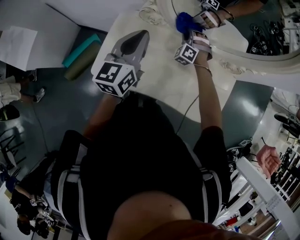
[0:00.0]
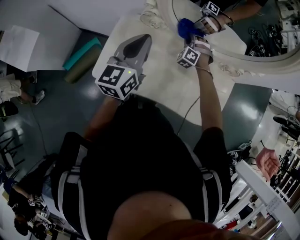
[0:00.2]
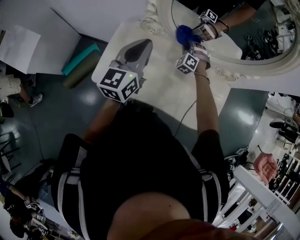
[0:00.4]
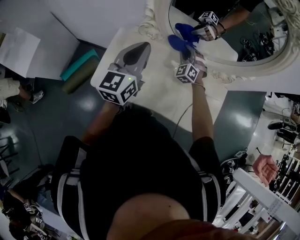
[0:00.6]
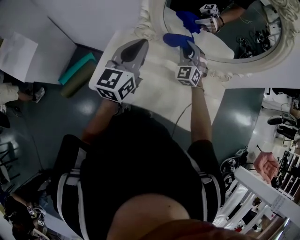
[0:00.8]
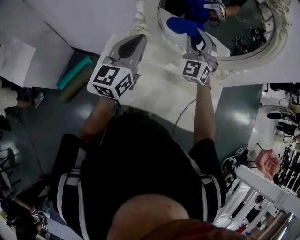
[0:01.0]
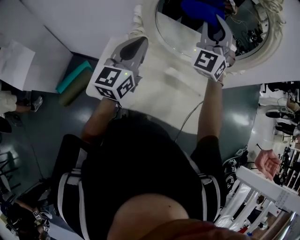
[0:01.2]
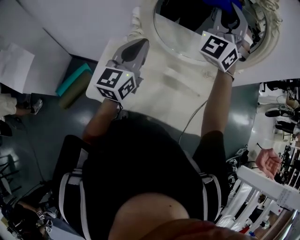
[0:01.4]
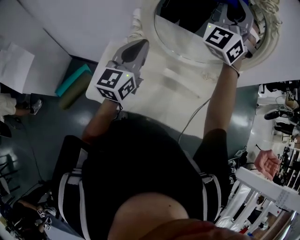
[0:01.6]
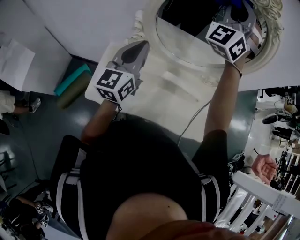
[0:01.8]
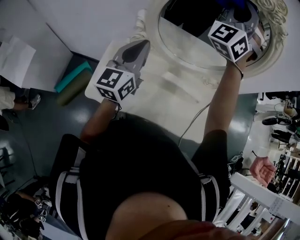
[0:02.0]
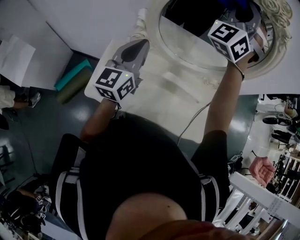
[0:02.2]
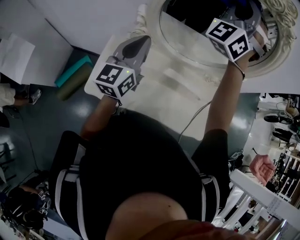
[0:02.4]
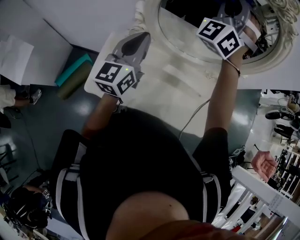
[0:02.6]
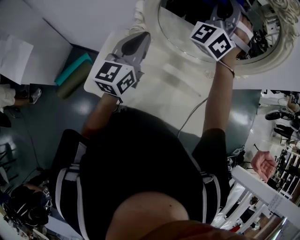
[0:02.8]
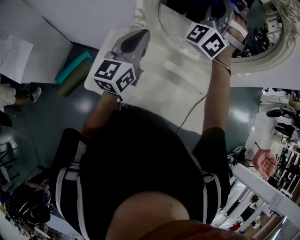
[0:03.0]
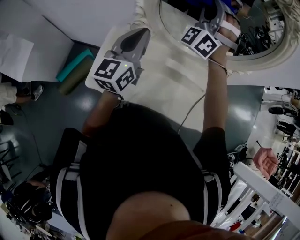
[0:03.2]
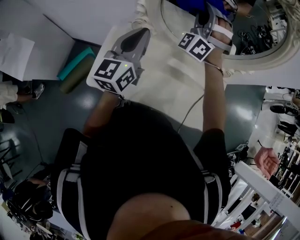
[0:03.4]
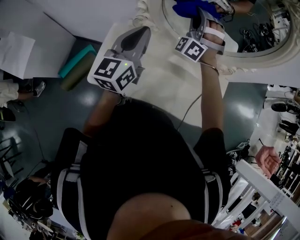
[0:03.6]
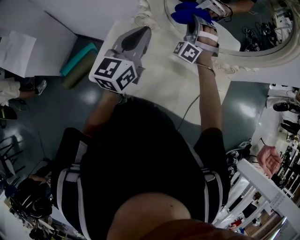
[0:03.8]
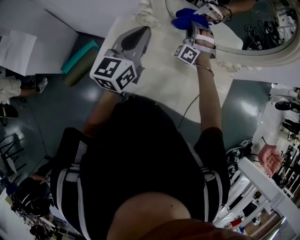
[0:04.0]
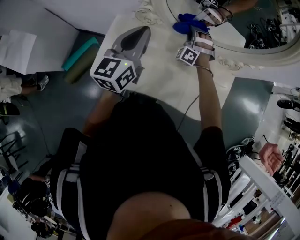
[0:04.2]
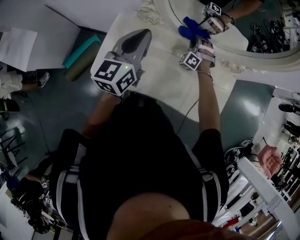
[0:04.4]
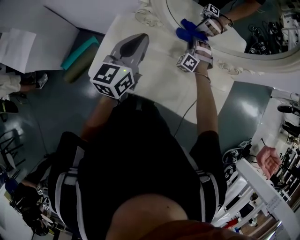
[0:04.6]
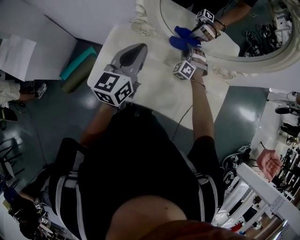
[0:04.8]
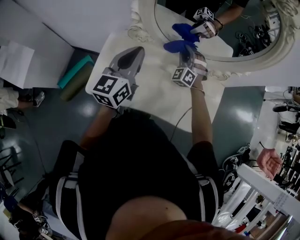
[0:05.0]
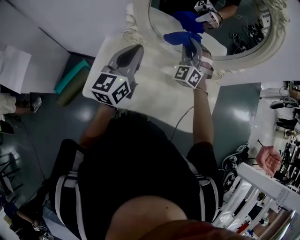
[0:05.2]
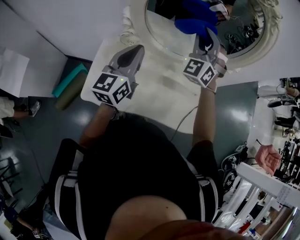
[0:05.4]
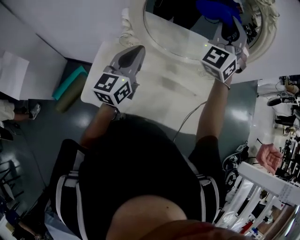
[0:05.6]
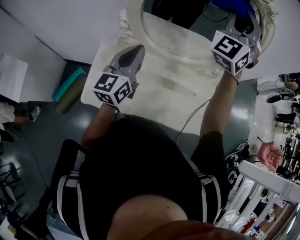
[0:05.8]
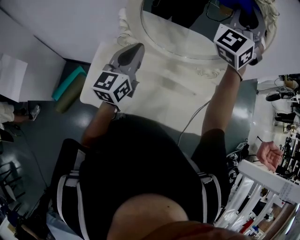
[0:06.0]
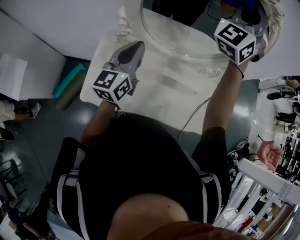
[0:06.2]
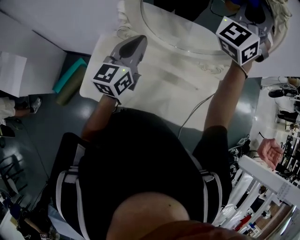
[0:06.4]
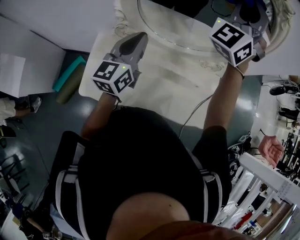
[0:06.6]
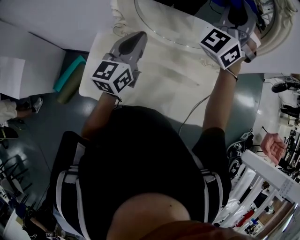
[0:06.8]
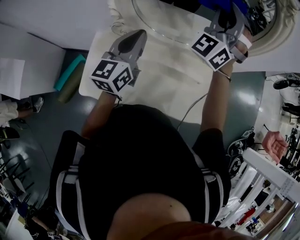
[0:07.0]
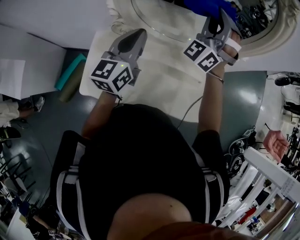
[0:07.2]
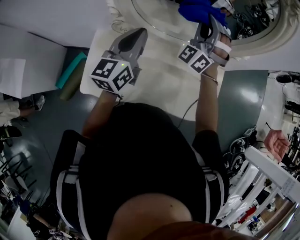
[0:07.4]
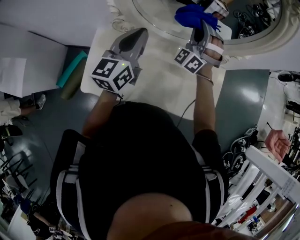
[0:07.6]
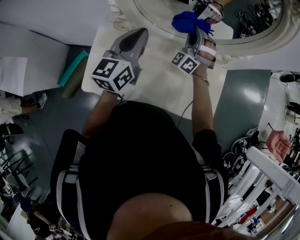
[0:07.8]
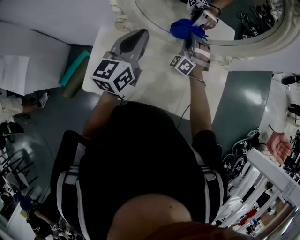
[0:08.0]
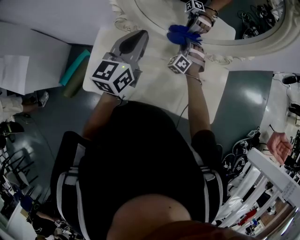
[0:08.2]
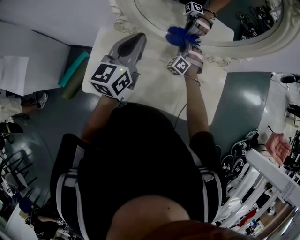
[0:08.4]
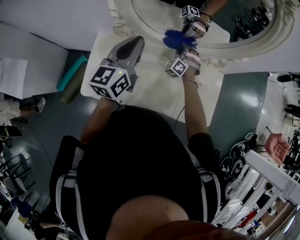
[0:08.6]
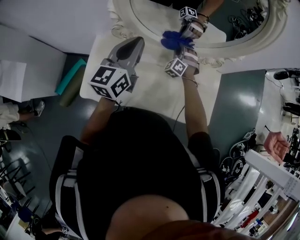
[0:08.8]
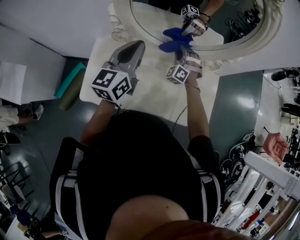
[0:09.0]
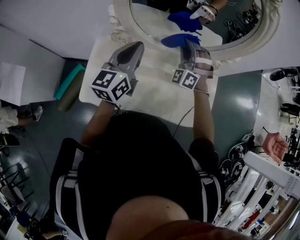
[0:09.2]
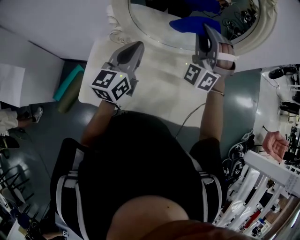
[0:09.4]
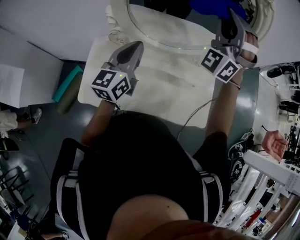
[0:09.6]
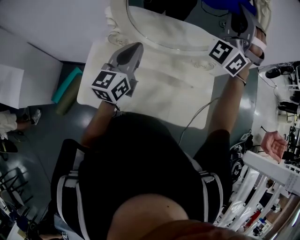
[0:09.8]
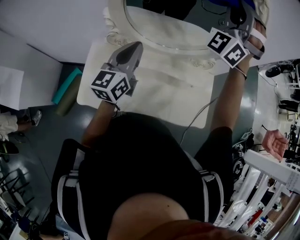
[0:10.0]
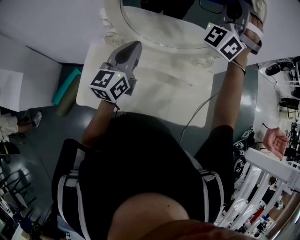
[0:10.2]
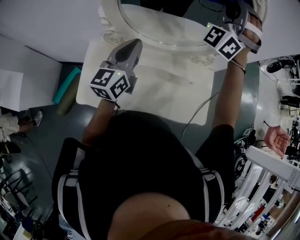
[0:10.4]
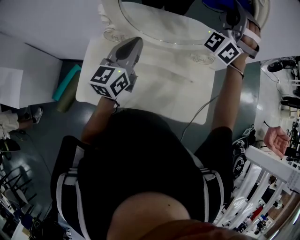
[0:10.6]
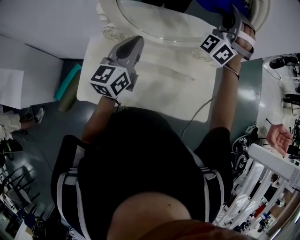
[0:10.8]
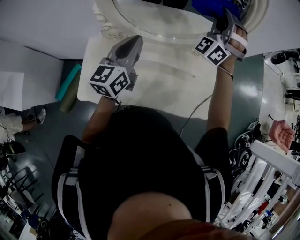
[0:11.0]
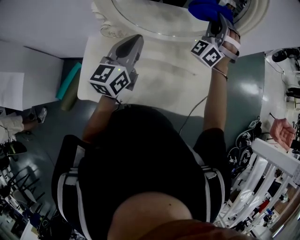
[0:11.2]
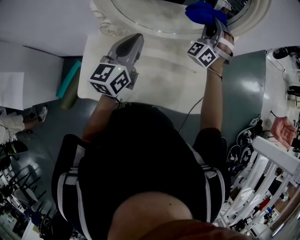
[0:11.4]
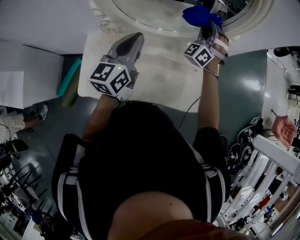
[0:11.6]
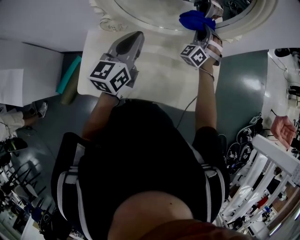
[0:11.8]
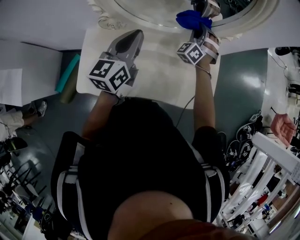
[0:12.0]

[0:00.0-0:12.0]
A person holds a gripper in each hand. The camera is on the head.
0:00.0 to 0:01.6: The right gripper shifts approximately 50 cm upward, and angles its fingers upward, by about 50 degrees. The left gripper goes about 5 cm upward.
0:01.6 to 0:03.0: The right gripper heads downward, covering approximately 10 cm.
0:03.0 to 0:04.4: The right gripper goes about 40 cm downward, and points its fingers roughly 40 degrees further downward. Meanwhile the left gripper travels downward by roughly 5 cm.
0:04.4 to 0:06.0: The left gripper goes about 5 cm upward. Meanwhile the right gripper heads upward, covering roughly 50 cm, and tips its fingers upward by about 40 degrees.
0:06.0 to 0:07.6: The left gripper is displaced downward by some 5 cm; the right gripper travels downward by about 35 cm, and changes its angle by about 20 degrees.
0:07.6 to 0:09.0: The right gripper moves downward, some 15 cm, and swivels roughly 20 degrees.
0:09.0 to 0:10.4: The right gripper is displaced upward by some 40 cm, and tilts its fingers about 40 degrees upward.
0:10.4 to 0:12.0: The right gripper is displaced downward by some 35 cm, and tilts its fingers some 30 degrees downward.

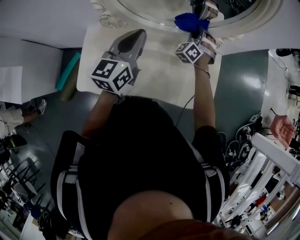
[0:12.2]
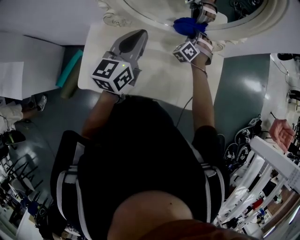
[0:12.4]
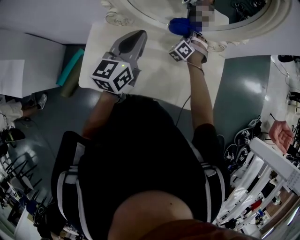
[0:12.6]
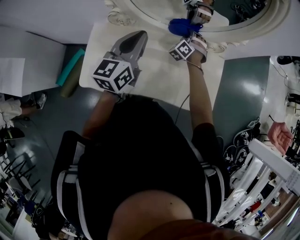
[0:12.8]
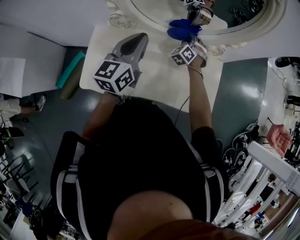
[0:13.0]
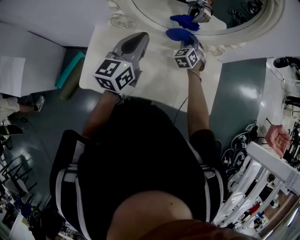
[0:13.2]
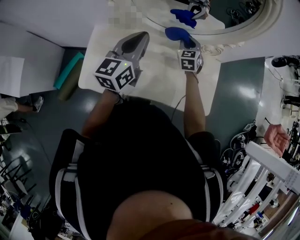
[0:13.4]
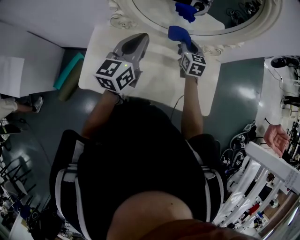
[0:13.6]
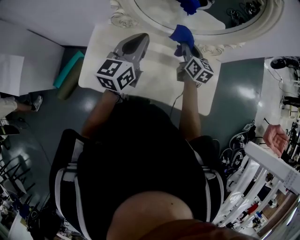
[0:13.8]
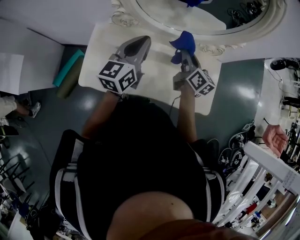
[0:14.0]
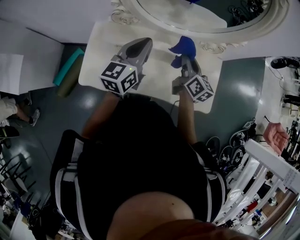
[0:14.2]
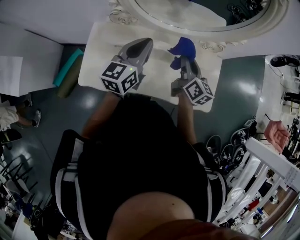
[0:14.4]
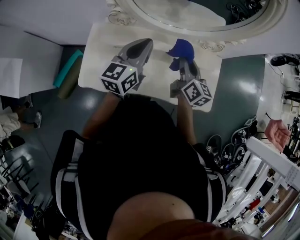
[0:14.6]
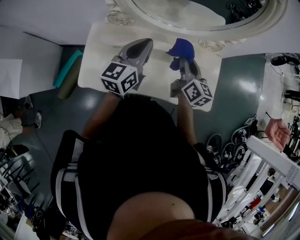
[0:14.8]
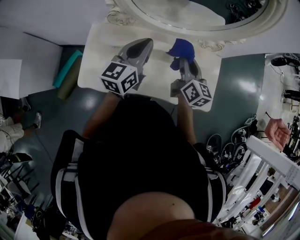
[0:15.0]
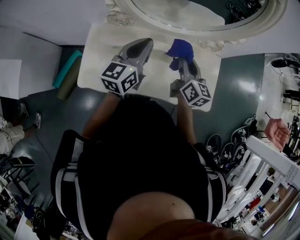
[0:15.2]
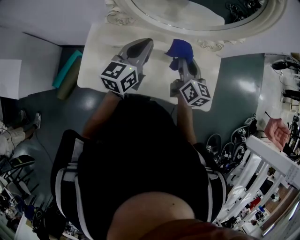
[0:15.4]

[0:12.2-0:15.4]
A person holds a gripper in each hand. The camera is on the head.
0:12.2 to 0:13.8: The right gripper heads backward, covering some 10 cm, and twists roughly 80 degrees clockwise, seen from behind.
0:13.8 to 0:15.4: The right gripper heads backward, covering roughly 10 cm.

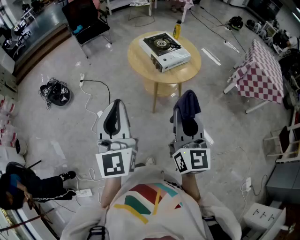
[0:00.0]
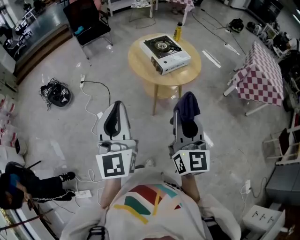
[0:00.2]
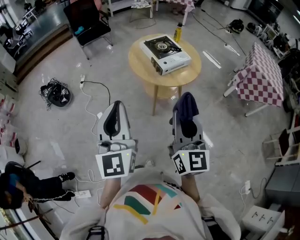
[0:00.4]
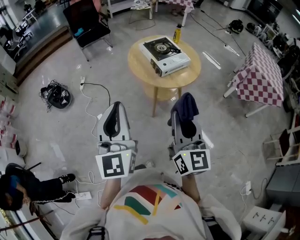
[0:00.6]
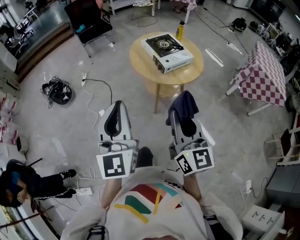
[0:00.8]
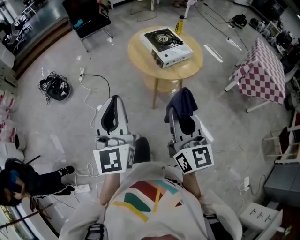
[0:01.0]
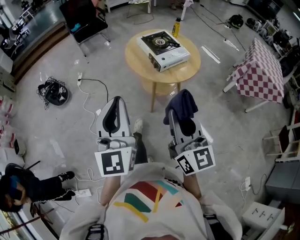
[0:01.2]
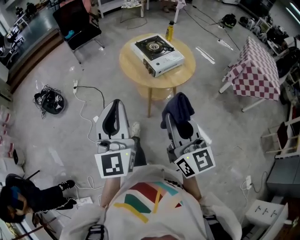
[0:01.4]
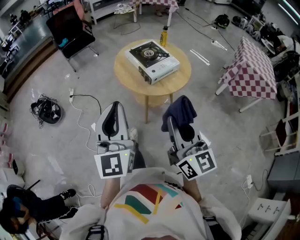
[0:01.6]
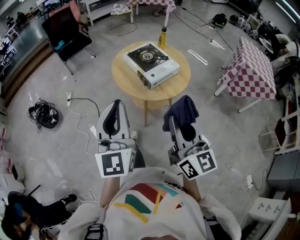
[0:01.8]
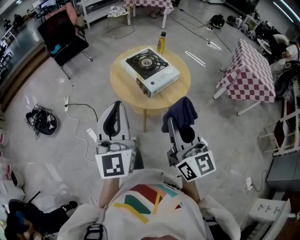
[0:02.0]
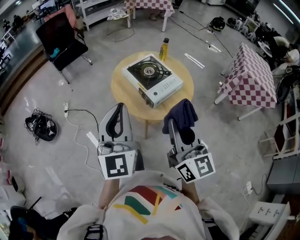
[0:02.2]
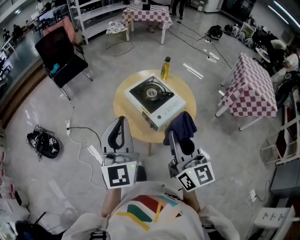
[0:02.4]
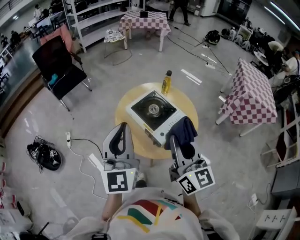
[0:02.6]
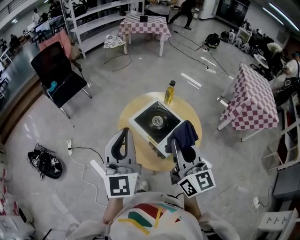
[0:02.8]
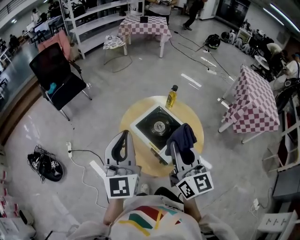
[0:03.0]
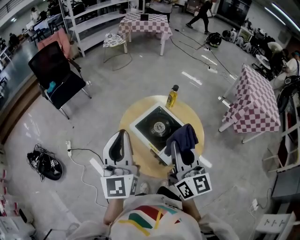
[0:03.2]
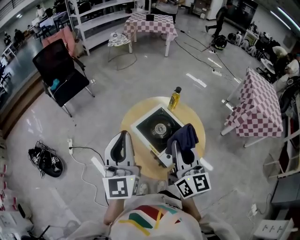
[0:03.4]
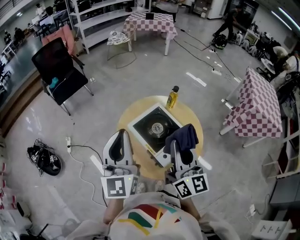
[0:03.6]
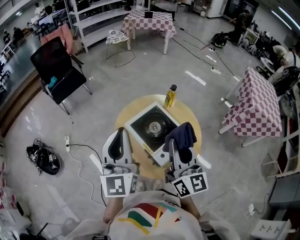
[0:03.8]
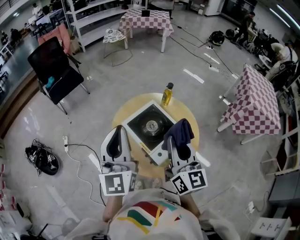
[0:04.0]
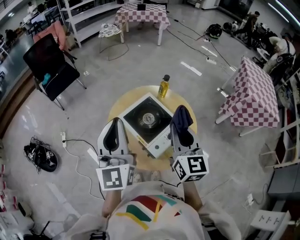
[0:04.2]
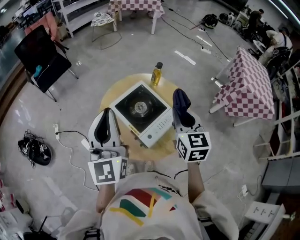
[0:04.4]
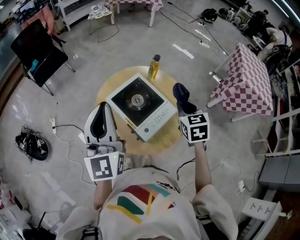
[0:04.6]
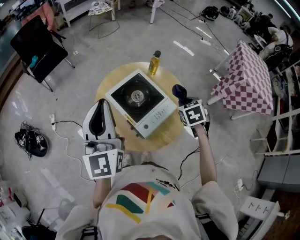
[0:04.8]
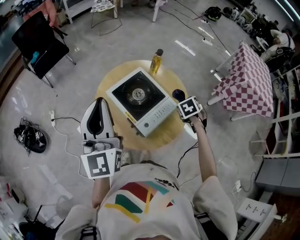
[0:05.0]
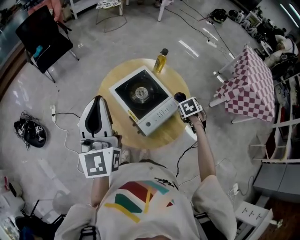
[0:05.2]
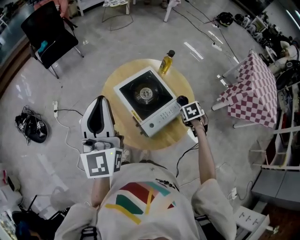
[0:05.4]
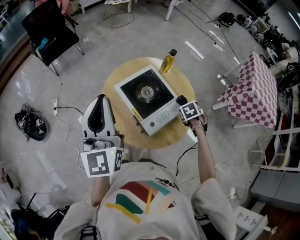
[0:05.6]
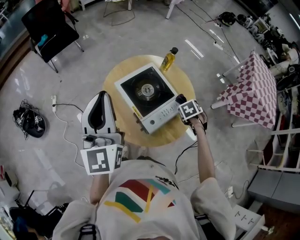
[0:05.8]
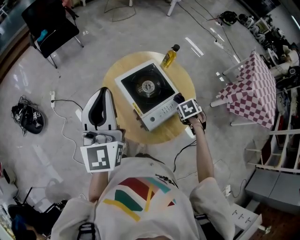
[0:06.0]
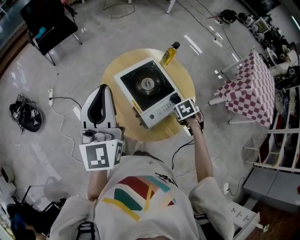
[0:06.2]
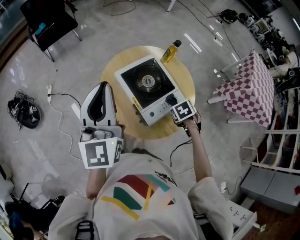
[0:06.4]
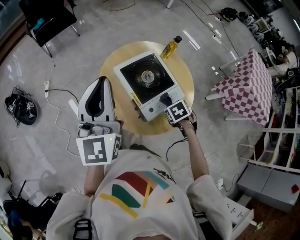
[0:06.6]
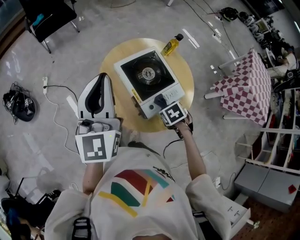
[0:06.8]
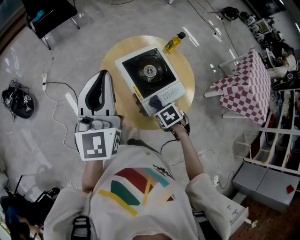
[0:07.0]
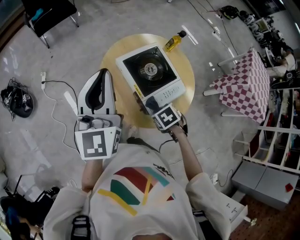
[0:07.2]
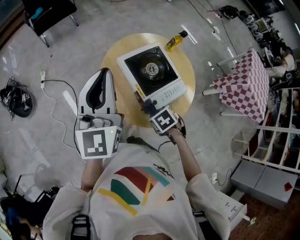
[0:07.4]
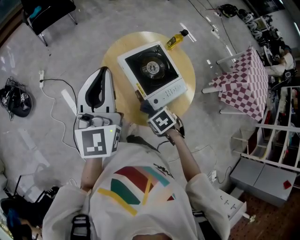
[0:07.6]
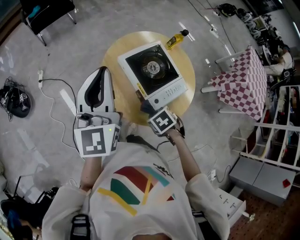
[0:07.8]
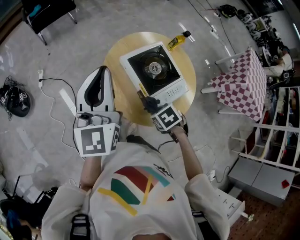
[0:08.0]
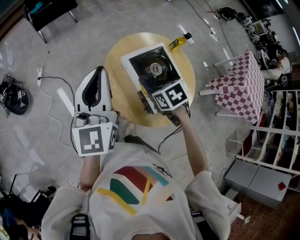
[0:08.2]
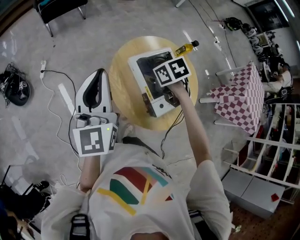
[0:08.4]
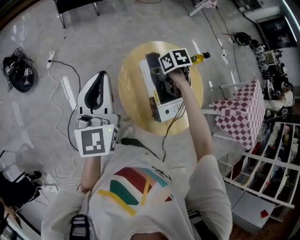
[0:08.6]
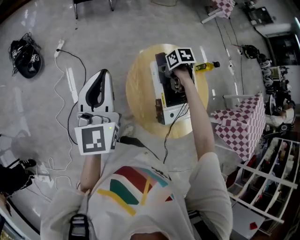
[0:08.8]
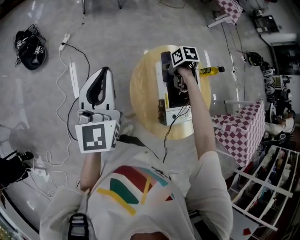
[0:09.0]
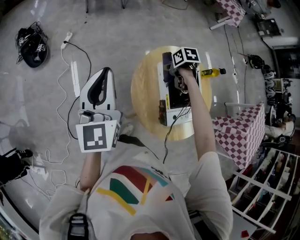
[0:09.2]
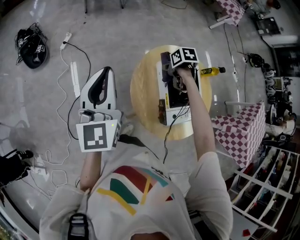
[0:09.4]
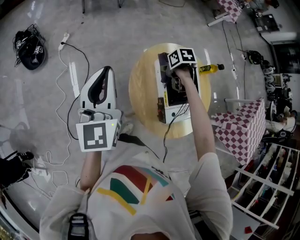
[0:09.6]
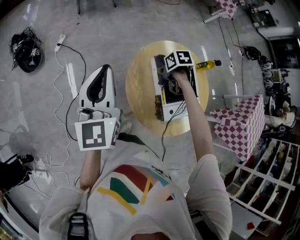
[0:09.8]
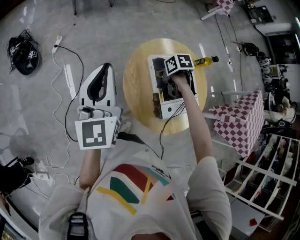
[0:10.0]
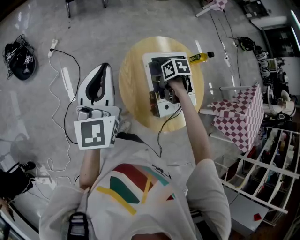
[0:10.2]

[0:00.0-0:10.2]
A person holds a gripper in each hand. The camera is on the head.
0:00.0 to 0:01.4: The left gripper ends up roughly 5 cm from where it was.
0:01.4 to 0:03.0: Both grippers are carried forward, some 40 cm.
0:03.0 to 0:04.4: The left gripper changes place by some 5 cm, while the right gripper travels to the right, forward and downward by about 15 cm, and rotates roughly 30 degrees.
0:04.4 to 0:05.8: The right gripper goes some 25 cm downward, and tips its fingers downward by about 50 degrees.
0:05.8 to 0:07.2: The right gripper changes place by some 20 cm.
0:07.2 to 0:08.8: The right gripper goes upward and returns, about 10 cm each way; the left gripper moves some 15 cm.
0:08.8 to 0:10.2: The right gripper changes place by roughly 10 cm.
